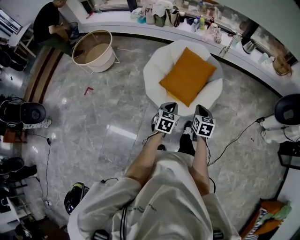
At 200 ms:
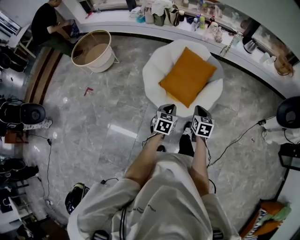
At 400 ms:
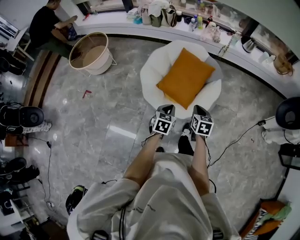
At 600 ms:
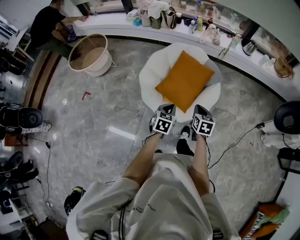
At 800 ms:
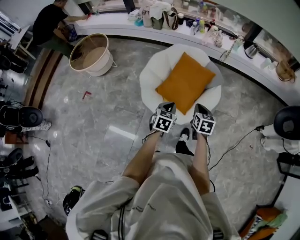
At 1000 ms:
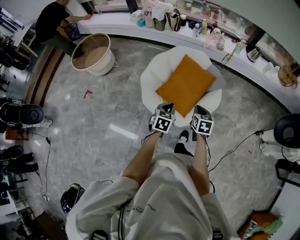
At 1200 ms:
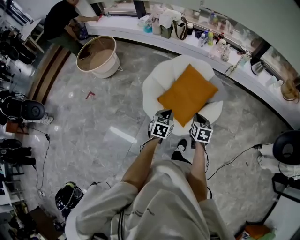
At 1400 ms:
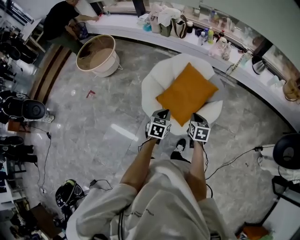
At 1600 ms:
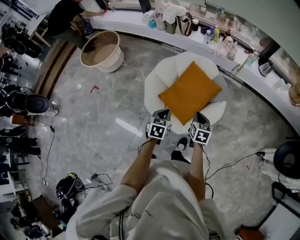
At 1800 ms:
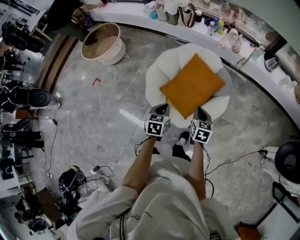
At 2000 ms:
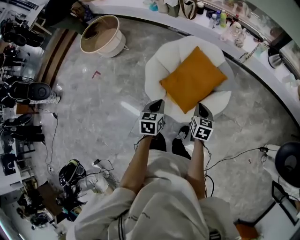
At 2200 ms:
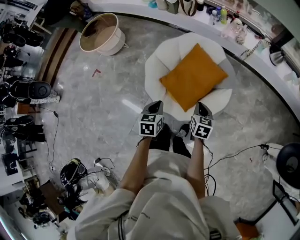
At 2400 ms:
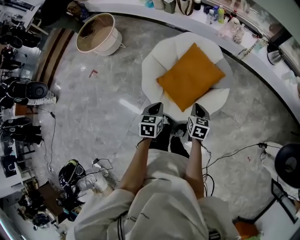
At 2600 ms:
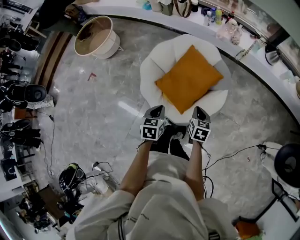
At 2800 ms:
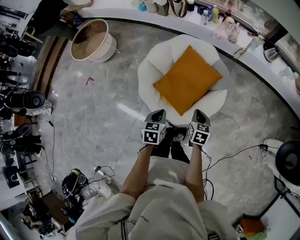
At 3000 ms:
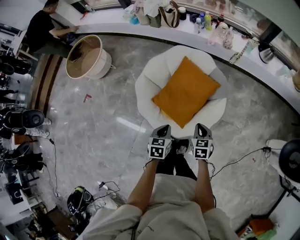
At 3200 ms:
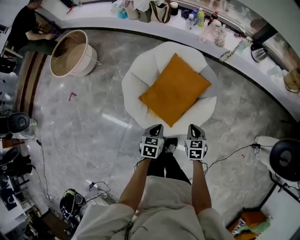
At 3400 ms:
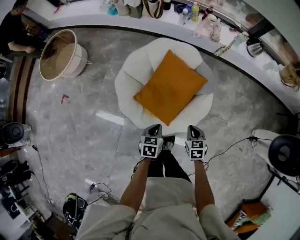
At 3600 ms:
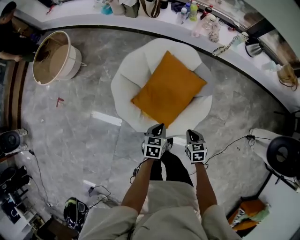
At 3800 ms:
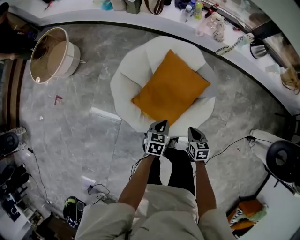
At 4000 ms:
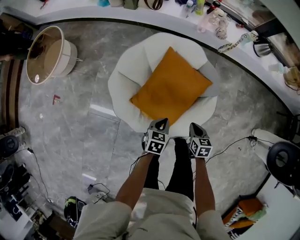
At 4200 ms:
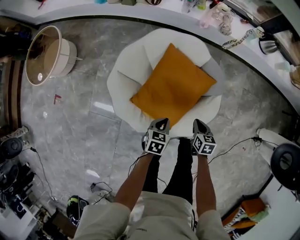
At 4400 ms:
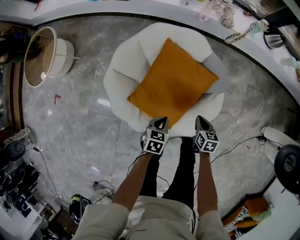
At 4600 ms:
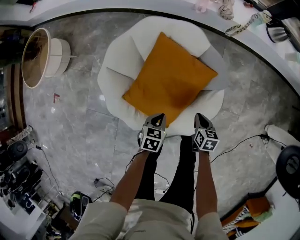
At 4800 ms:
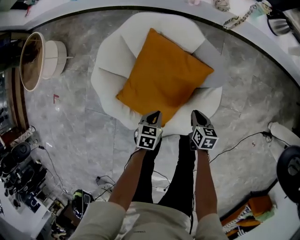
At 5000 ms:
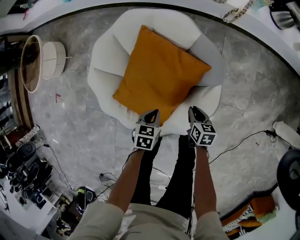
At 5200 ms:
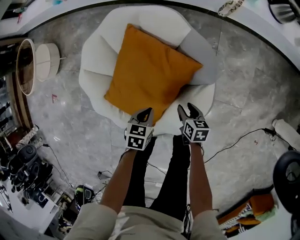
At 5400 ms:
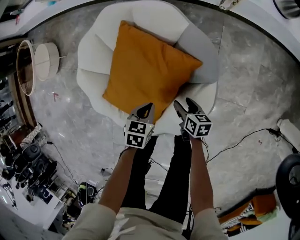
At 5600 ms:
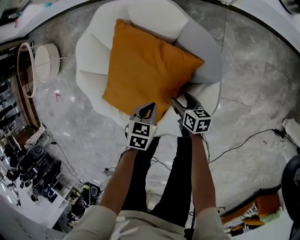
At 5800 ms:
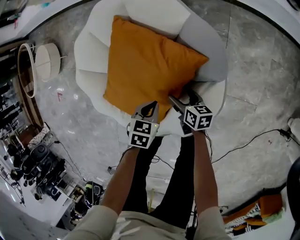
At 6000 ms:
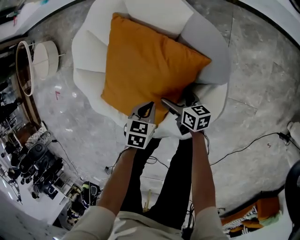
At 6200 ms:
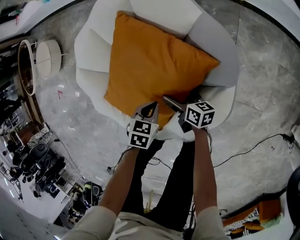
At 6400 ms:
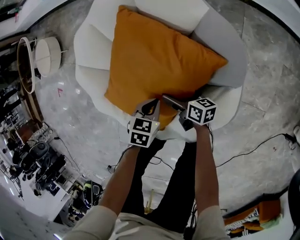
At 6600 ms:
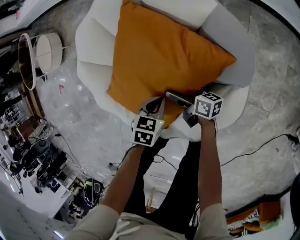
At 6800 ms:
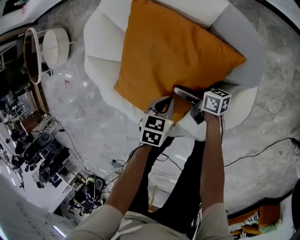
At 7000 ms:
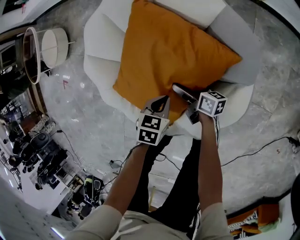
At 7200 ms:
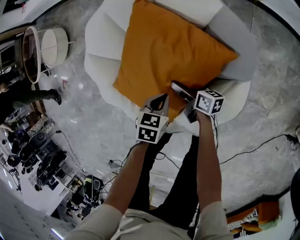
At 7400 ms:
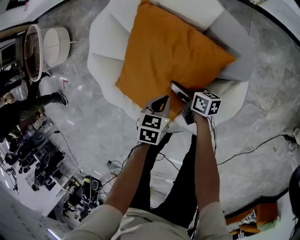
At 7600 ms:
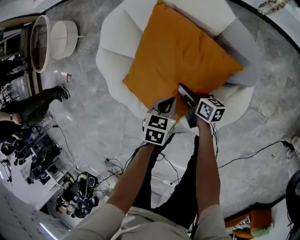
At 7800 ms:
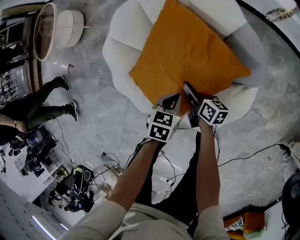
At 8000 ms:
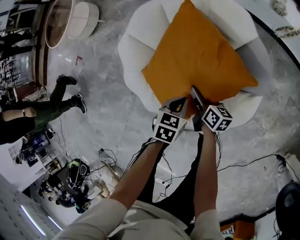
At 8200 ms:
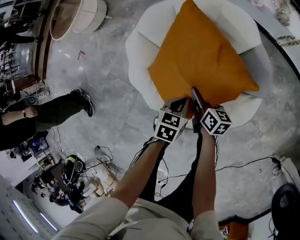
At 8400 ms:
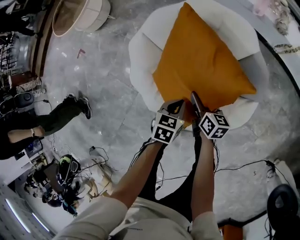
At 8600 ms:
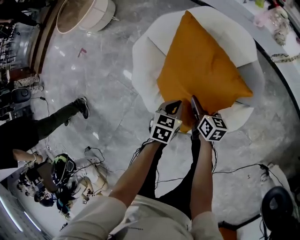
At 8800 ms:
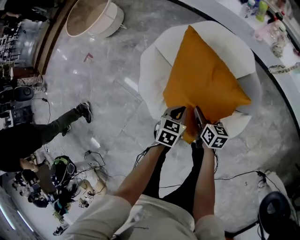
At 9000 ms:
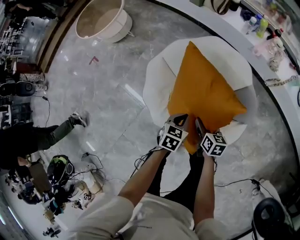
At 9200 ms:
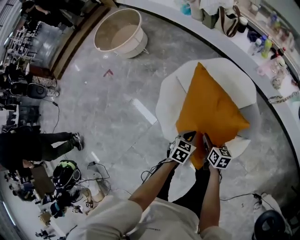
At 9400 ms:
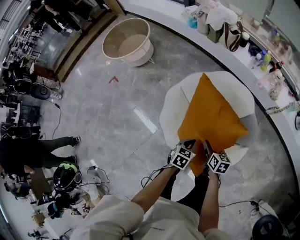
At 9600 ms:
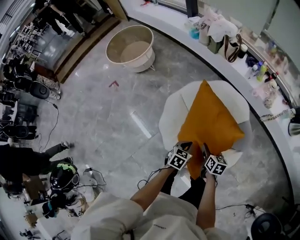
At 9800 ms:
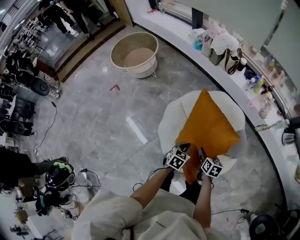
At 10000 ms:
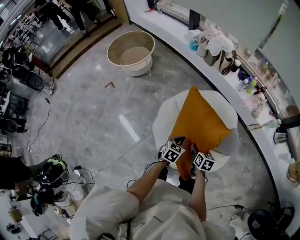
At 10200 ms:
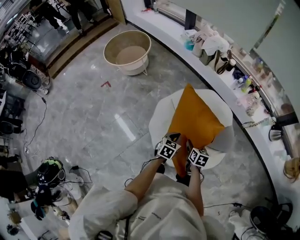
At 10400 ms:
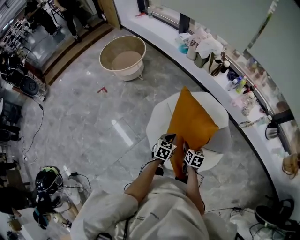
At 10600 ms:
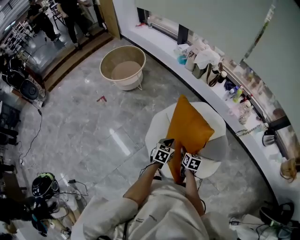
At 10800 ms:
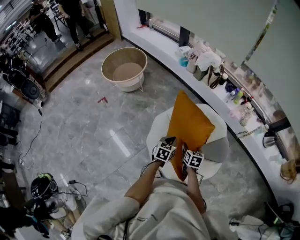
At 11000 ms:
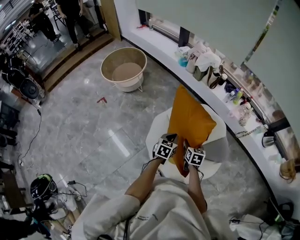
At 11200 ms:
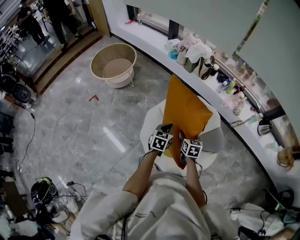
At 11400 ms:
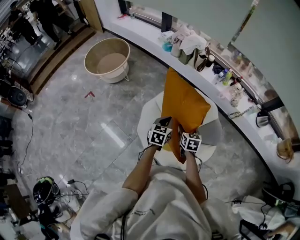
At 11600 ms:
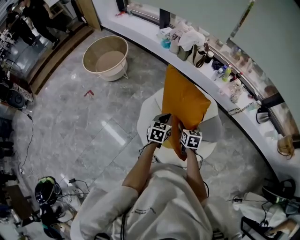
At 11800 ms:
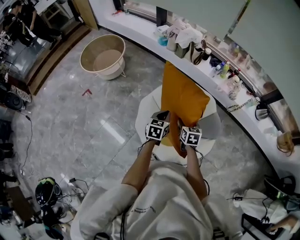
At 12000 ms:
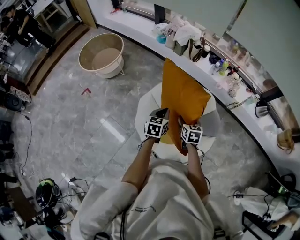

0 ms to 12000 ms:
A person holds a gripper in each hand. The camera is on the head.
0 ms to 1600 ms: The grippers both shift forward by roughly 20 cm.
1600 ms to 3000 ms: The grippers both shift downward by approximately 10 cm.
3000 ms to 4400 ms: Both grippers travel together downward and forward, about 25 cm. The right gripper changes its angle by approximately 20 degrees. The left gripper turns by about 20 degrees.
4400 ms to 6000 ms: The left gripper travels downward and to the right by about 20 cm; the right gripper heads downward and forward, covering approximately 25 cm, swivels roughly 40 degrees, and opens its fingers.
6000 ms to 7600 ms: The left gripper changes place by roughly 5 cm. Meanwhile the right gripper is displaced to the left by about 10 cm.
7600 ms to 9000 ms: The two grippers go roughly 25 cm upward and to the left. The right gripper rotates about 30 degrees.
9000 ms to 10400 ms: The grippers both shift upward and to the left by some 20 cm.
10400 ms to 12000 ms: Both grippers travel together forward and upward, roughly 10 cm.

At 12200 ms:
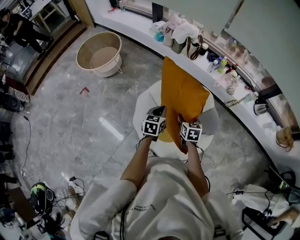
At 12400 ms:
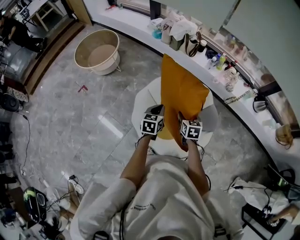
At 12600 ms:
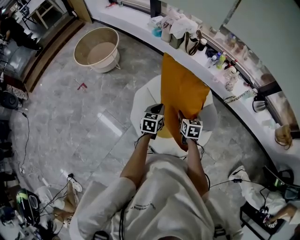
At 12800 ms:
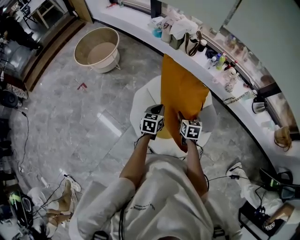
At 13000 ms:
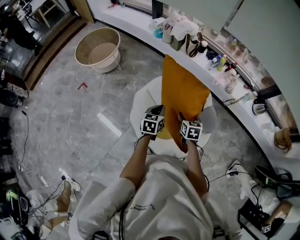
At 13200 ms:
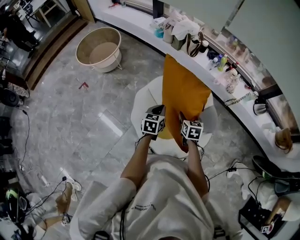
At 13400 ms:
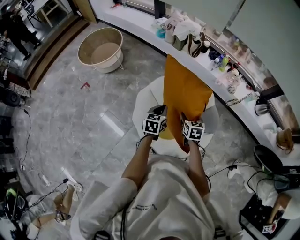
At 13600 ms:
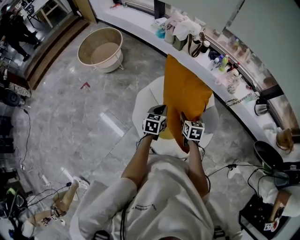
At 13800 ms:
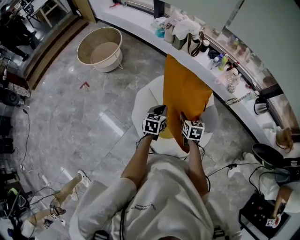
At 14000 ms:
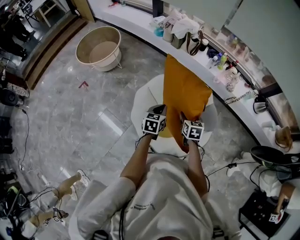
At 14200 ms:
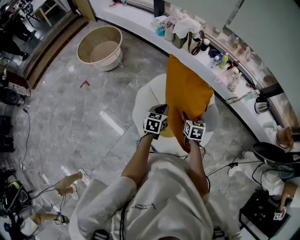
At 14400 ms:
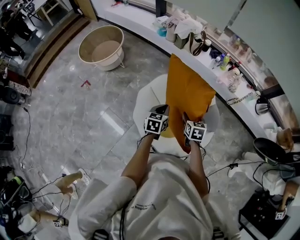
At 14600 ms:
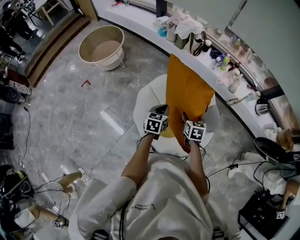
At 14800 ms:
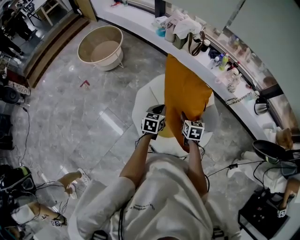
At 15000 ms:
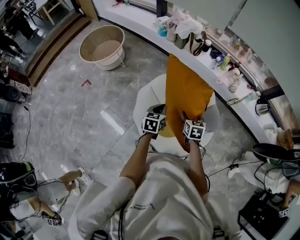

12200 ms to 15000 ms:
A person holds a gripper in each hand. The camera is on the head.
12200 ms to 15000 ms: The grippers make only small movements.

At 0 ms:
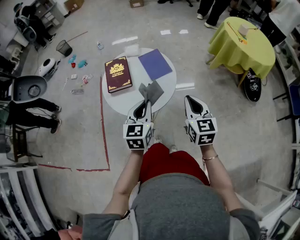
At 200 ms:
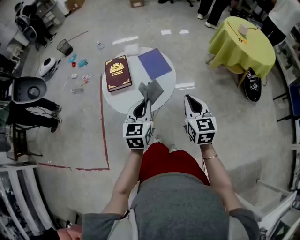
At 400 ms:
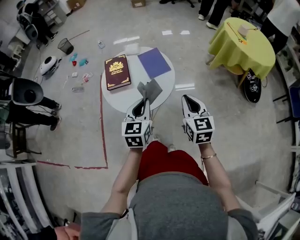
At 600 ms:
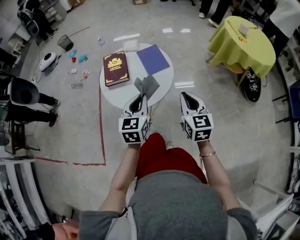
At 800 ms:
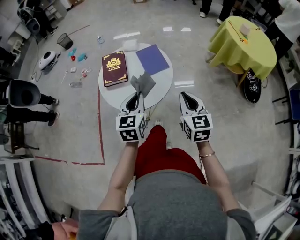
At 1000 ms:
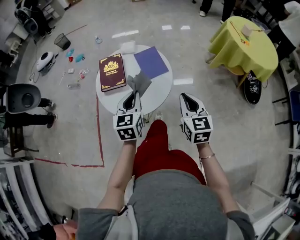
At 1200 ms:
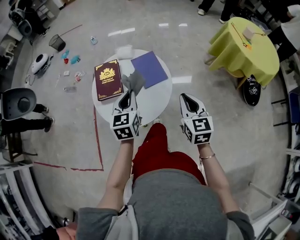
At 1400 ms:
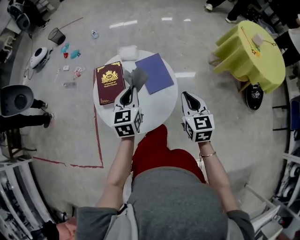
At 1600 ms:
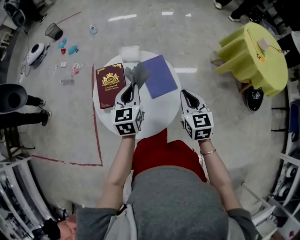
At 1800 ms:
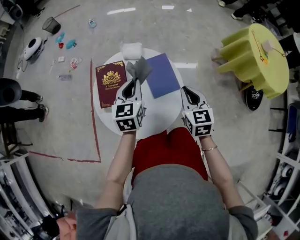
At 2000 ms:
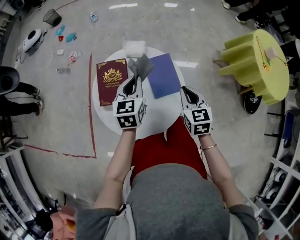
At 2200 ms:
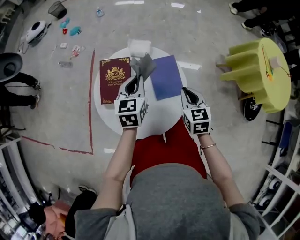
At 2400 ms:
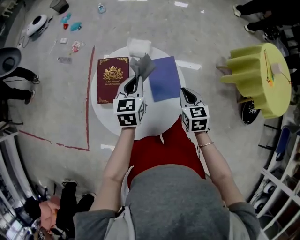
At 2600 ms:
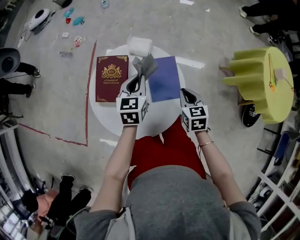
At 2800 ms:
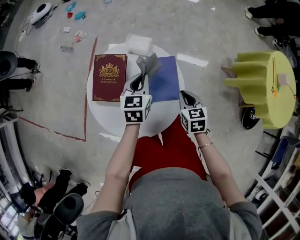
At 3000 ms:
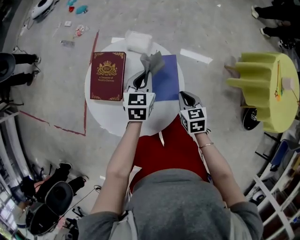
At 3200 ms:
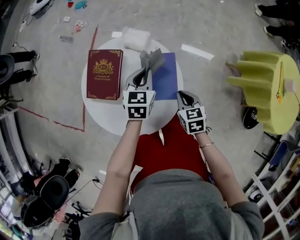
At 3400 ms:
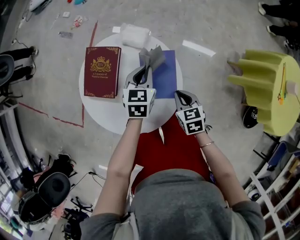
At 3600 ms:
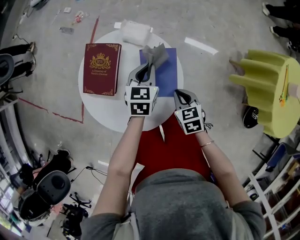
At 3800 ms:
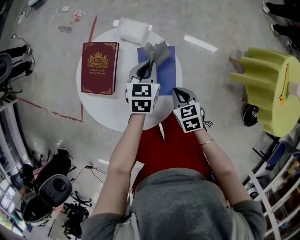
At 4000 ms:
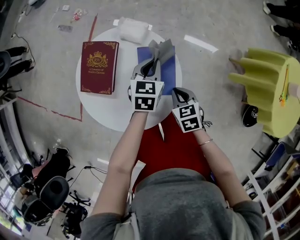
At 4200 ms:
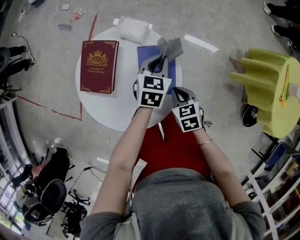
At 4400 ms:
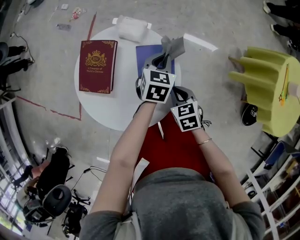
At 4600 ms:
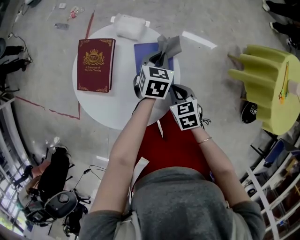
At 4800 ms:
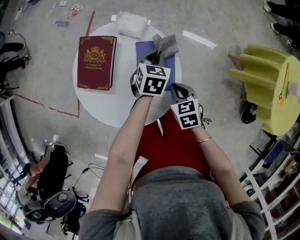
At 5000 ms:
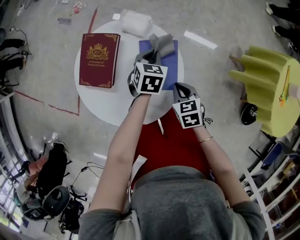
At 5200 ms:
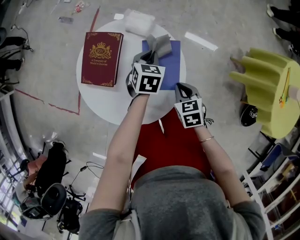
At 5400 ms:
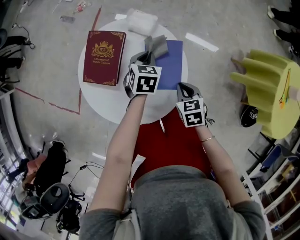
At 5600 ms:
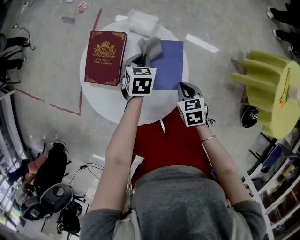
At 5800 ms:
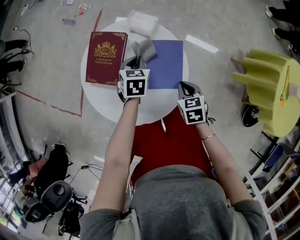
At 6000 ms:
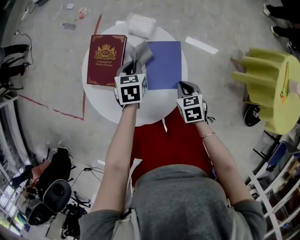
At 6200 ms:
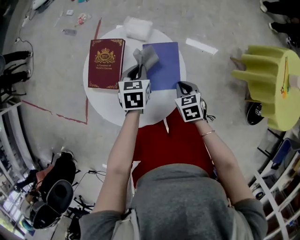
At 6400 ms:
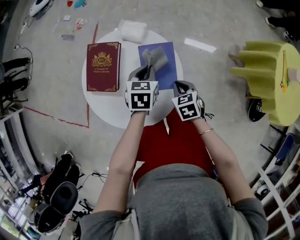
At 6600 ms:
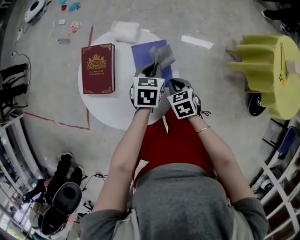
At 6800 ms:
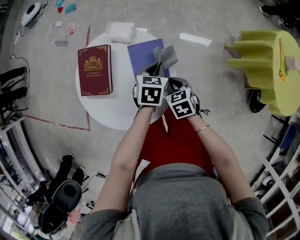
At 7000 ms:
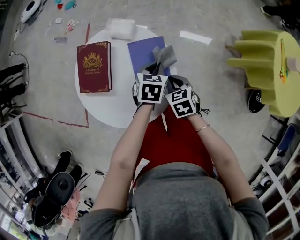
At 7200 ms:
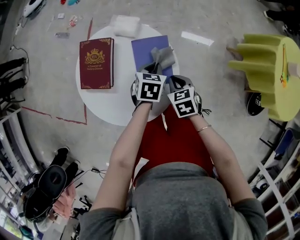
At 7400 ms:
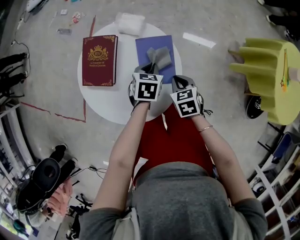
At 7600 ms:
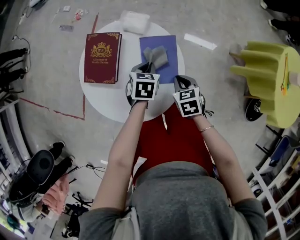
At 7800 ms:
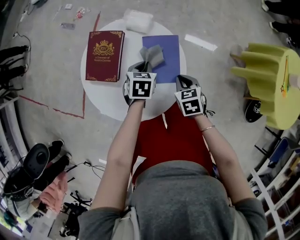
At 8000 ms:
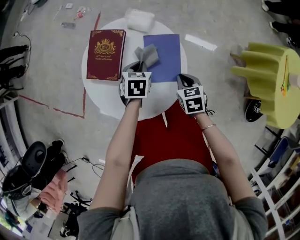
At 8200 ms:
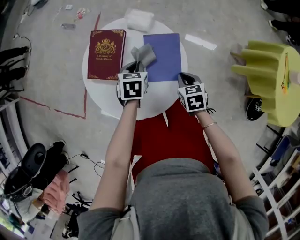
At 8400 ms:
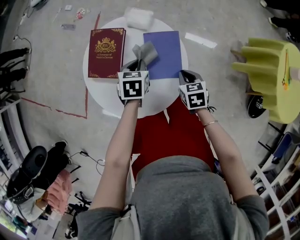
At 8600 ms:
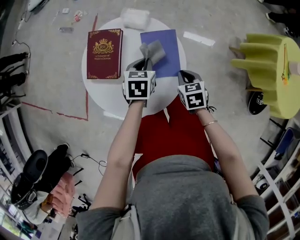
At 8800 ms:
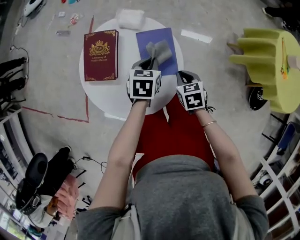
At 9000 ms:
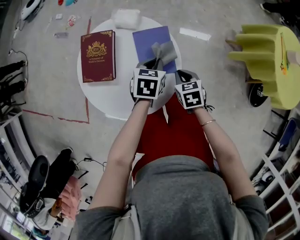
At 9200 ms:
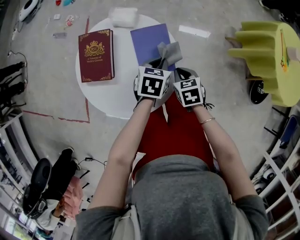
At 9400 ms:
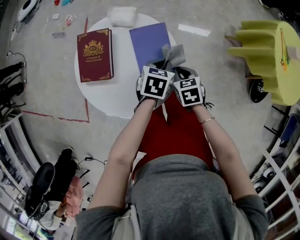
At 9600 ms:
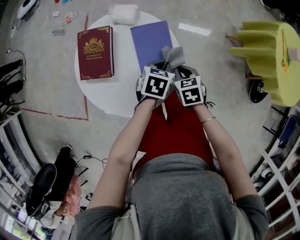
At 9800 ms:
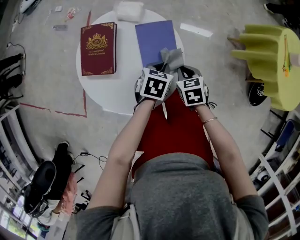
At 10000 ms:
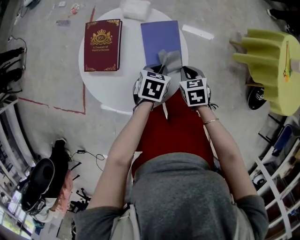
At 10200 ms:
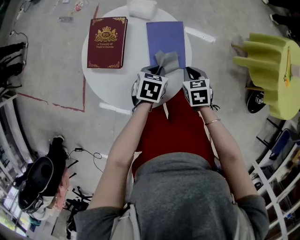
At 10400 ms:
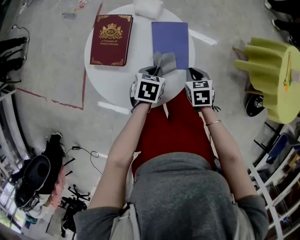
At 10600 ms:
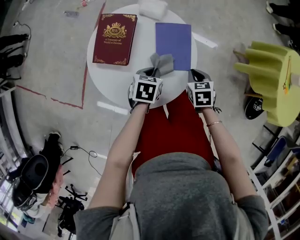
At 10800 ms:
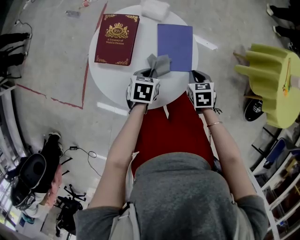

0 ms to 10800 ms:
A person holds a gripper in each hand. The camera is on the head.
0 ms to 1600 ms: Both grippers move forward, approximately 25 cm.
1600 ms to 3000 ms: Both grippers move downward and forward, about 15 cm. The right gripper swivels roughly 30 degrees.
3000 ms to 4600 ms: The left gripper travels to the right and downward by roughly 10 cm.
4600 ms to 6200 ms: The left gripper moves to the left, roughly 15 cm.
6200 ms to 7800 ms: The left gripper reaches roughly 15 cm to the right, then returns.
7800 ms to 9200 ms: The left gripper goes some 10 cm to the right.
9200 ms to 10800 ms: The left gripper goes roughly 15 cm to the left and backward.
